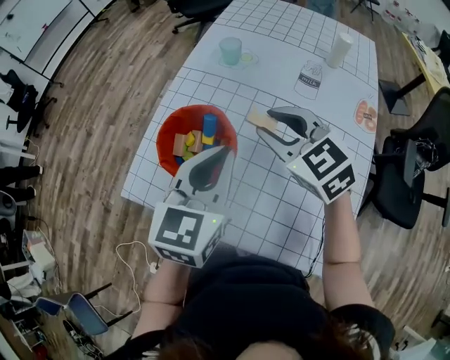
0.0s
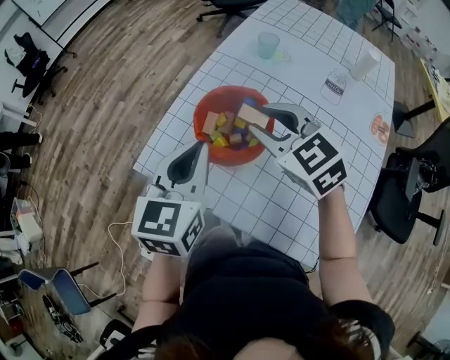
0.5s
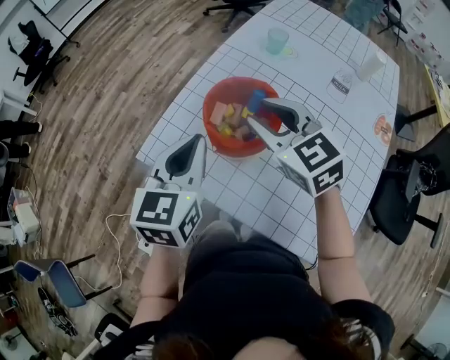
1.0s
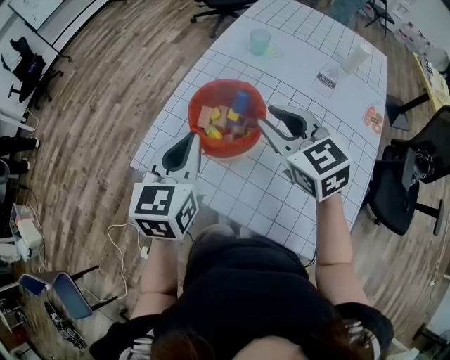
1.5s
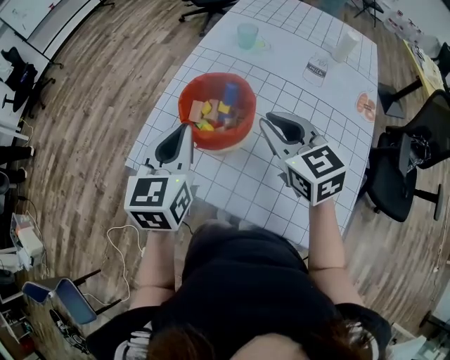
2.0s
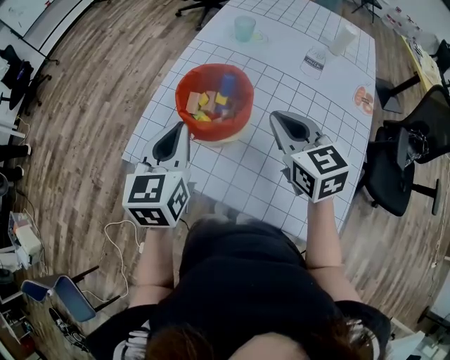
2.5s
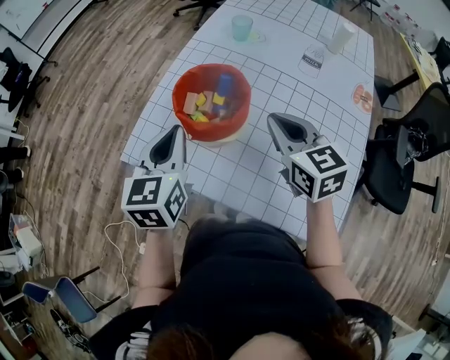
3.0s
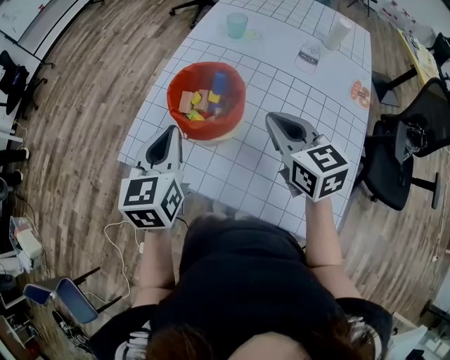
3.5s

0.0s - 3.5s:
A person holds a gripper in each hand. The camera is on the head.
0.0s - 2.0s: The left gripper moves to the left, some 15 cm, while the right gripper is displaced to the left and backward by some 10 cm, and closes.
2.0s - 3.5s: The grippers make only small movements.

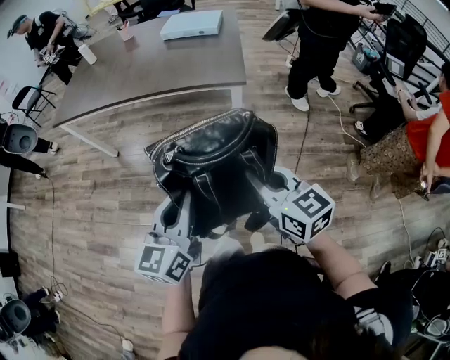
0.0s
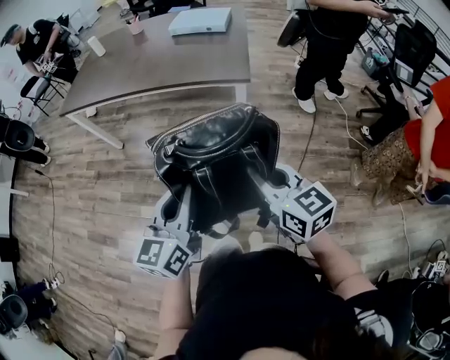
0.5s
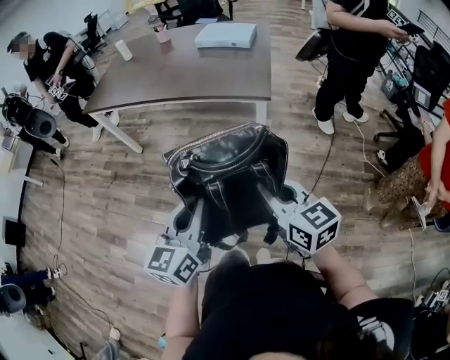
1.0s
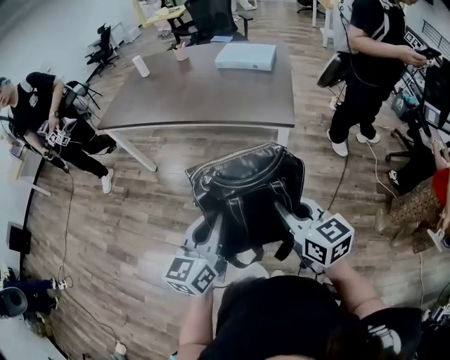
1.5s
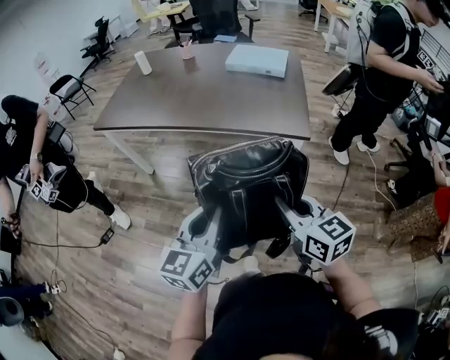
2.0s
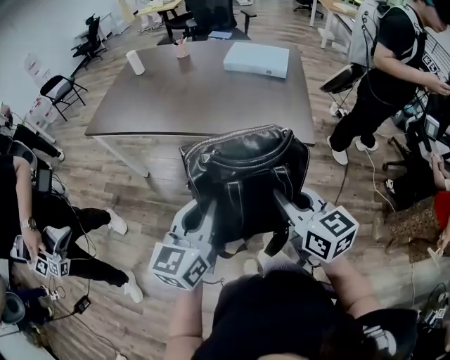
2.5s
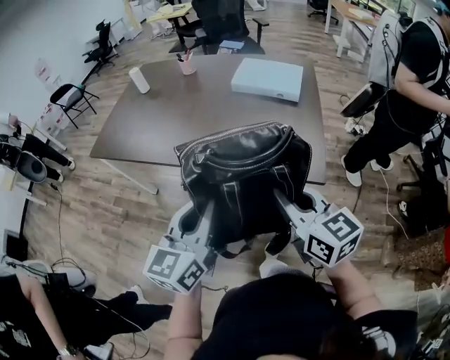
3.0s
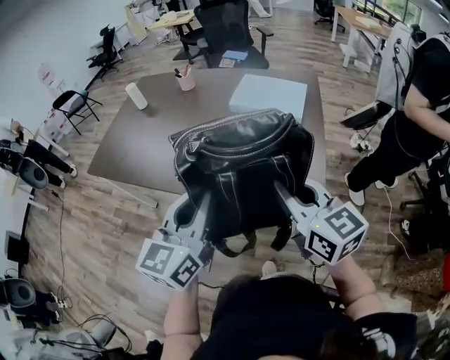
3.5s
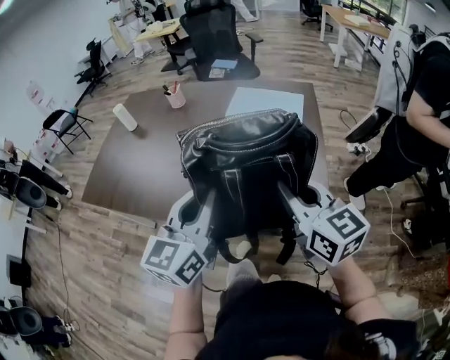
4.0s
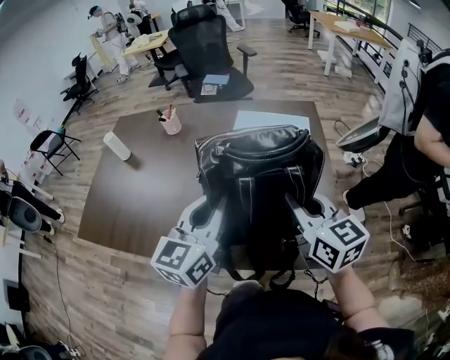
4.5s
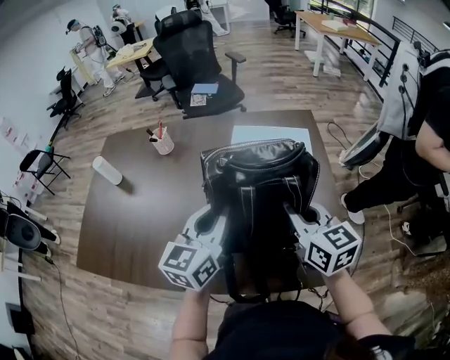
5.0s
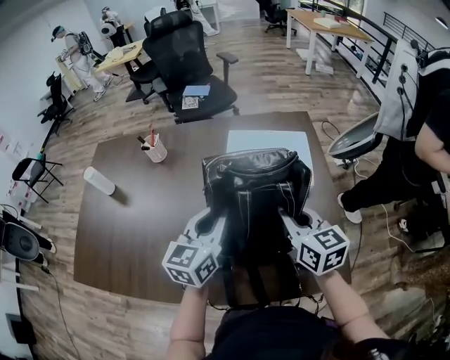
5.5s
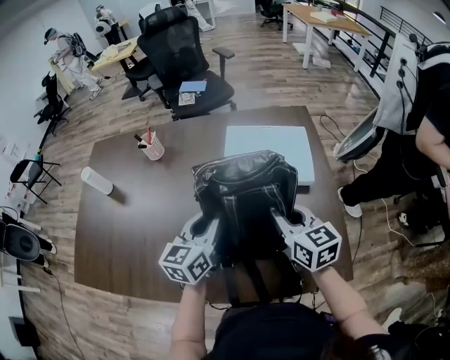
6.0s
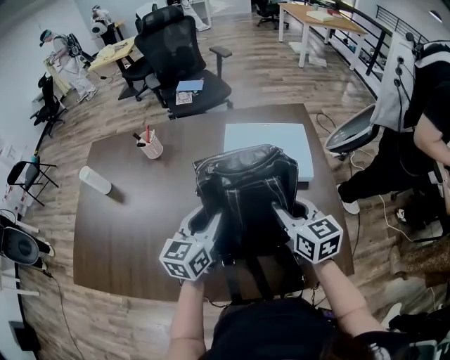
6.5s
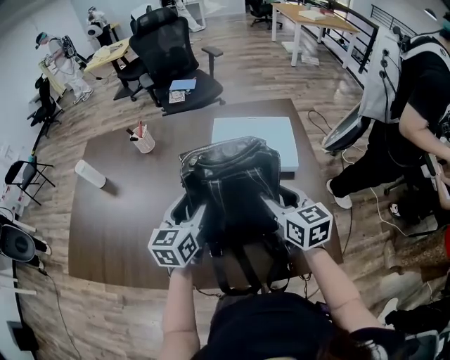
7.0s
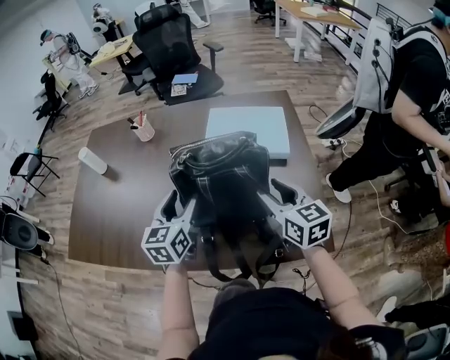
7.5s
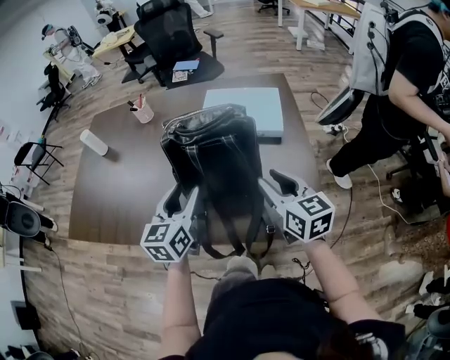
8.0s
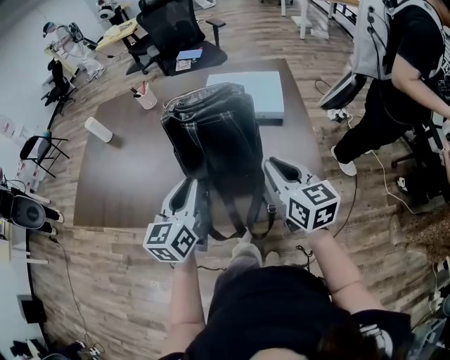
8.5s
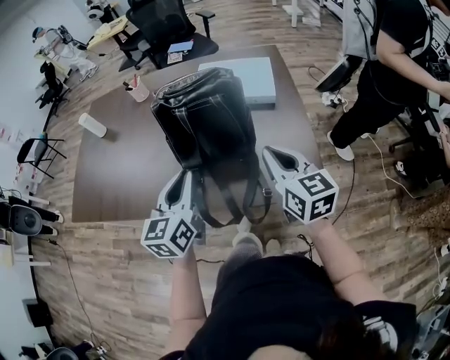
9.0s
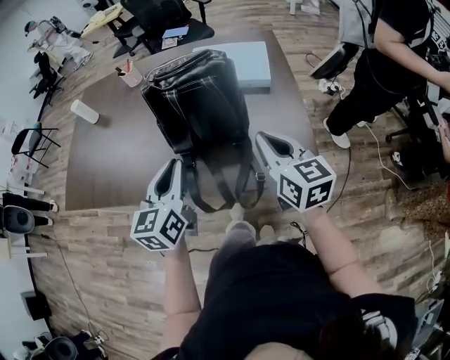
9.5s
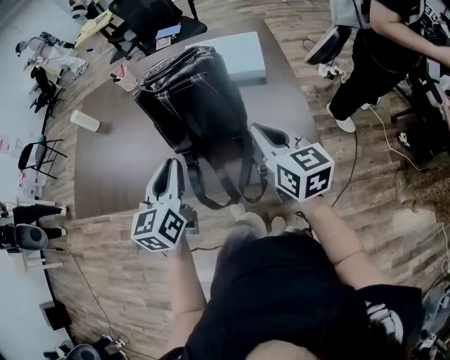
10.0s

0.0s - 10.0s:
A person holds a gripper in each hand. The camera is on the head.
0.0s - 2.0s: The two grippers go approximately 15 cm forward and to the left.
2.0s - 4.0s: The two grippers travel together, forward, some 40 cm.
4.0s - 6.0s: Both grippers move forward and downward, some 30 cm.
6.0s - 8.0s: The right gripper travels backward and to the right by approximately 15 cm, and opens its fingers; the left gripper shifts approximately 15 cm backward, and opens.
8.0s - 10.0s: The right gripper heads backward, covering about 5 cm, and closes up. Meanwhile the left gripper is displaced backward by about 10 cm, and closes its fingers.

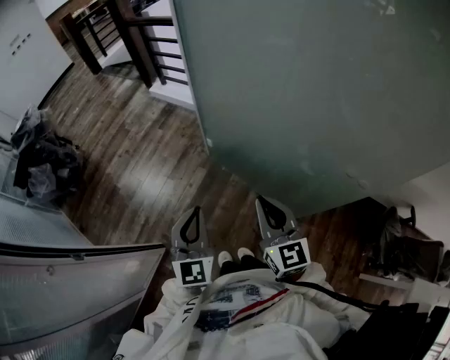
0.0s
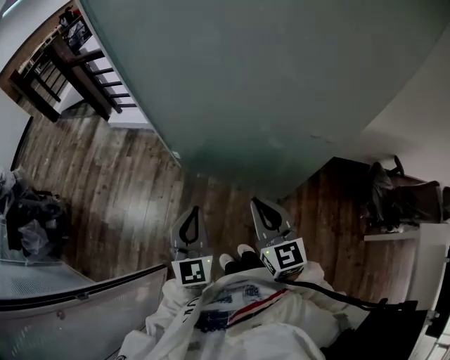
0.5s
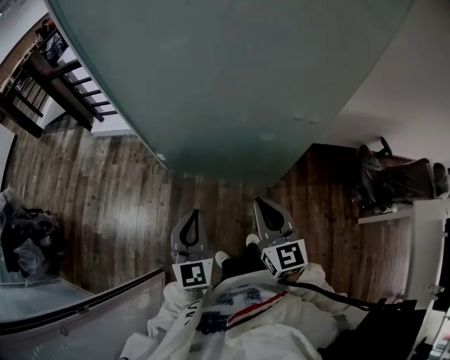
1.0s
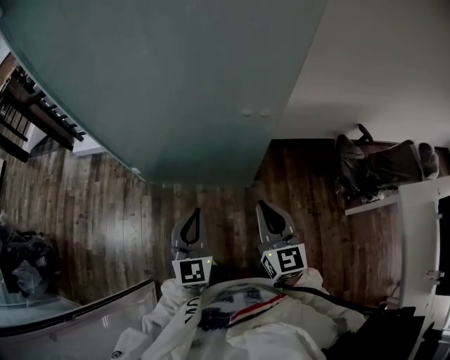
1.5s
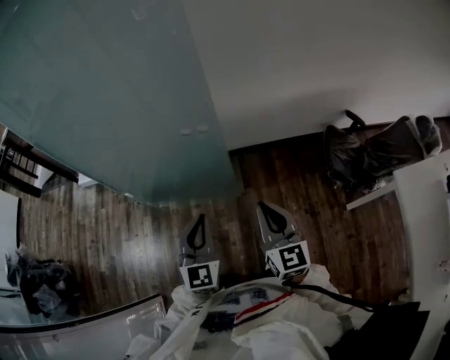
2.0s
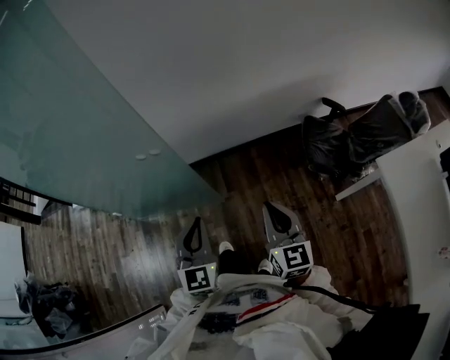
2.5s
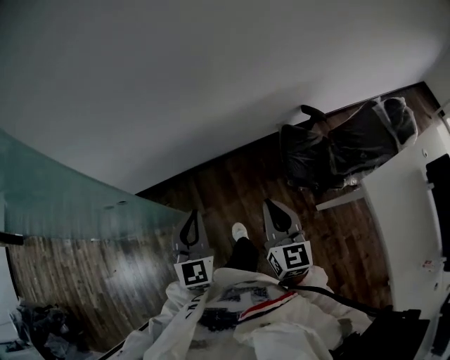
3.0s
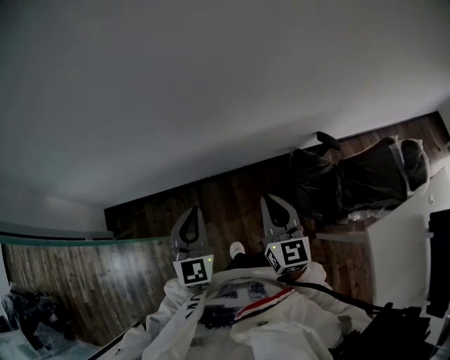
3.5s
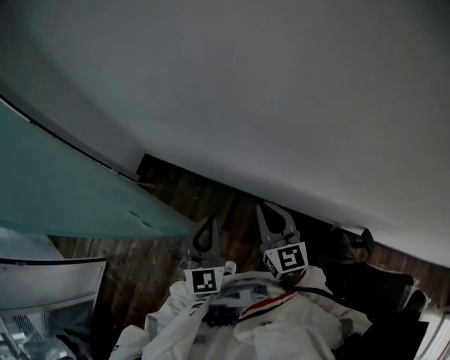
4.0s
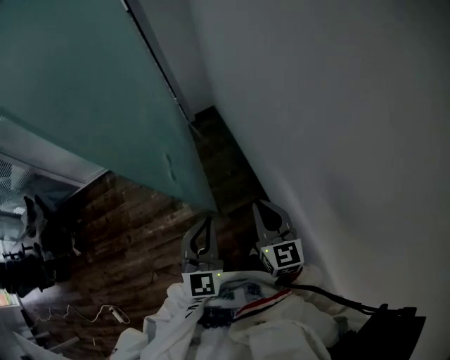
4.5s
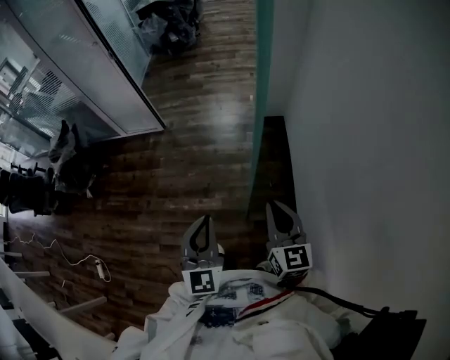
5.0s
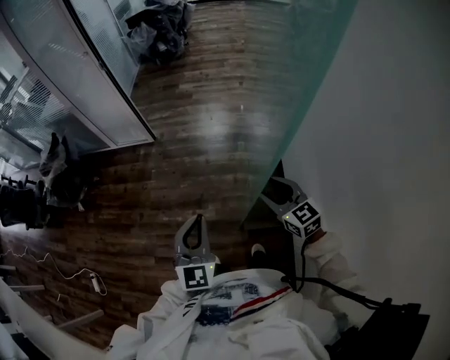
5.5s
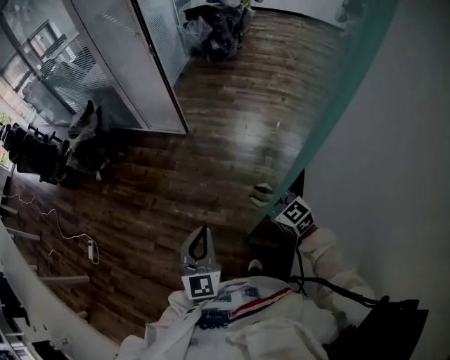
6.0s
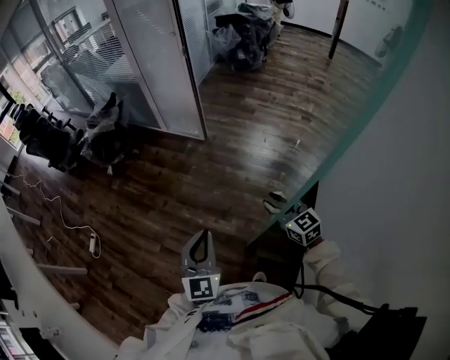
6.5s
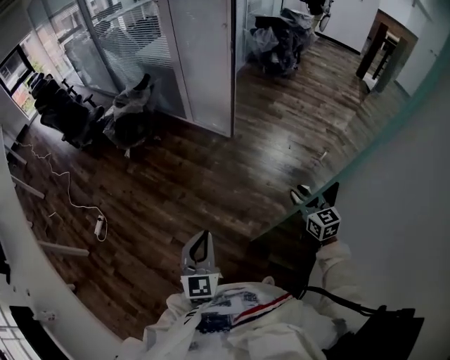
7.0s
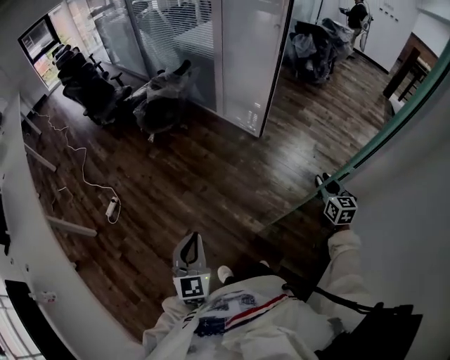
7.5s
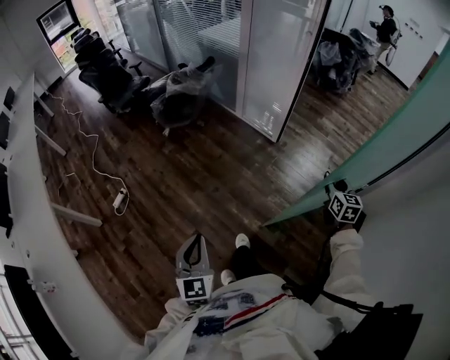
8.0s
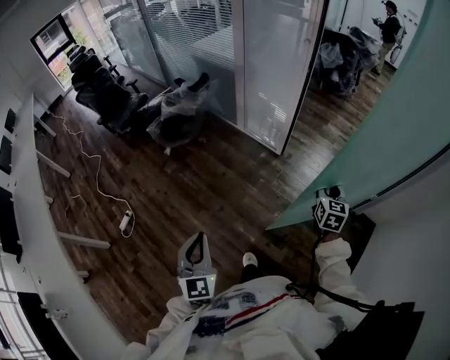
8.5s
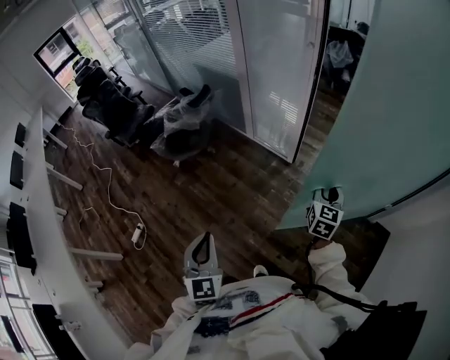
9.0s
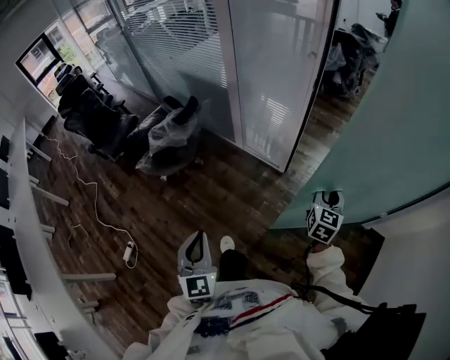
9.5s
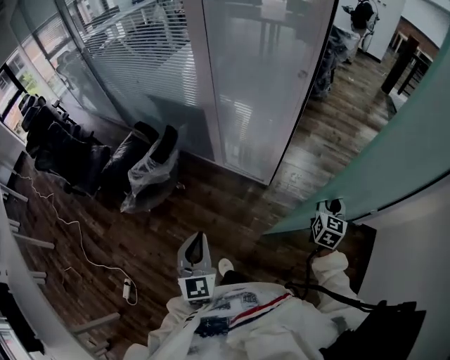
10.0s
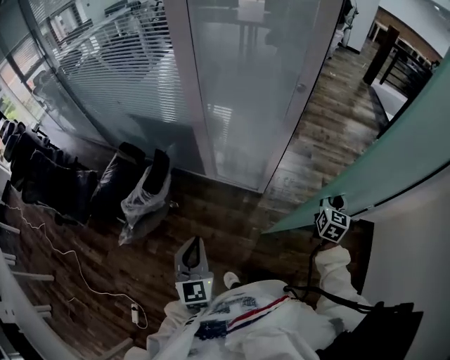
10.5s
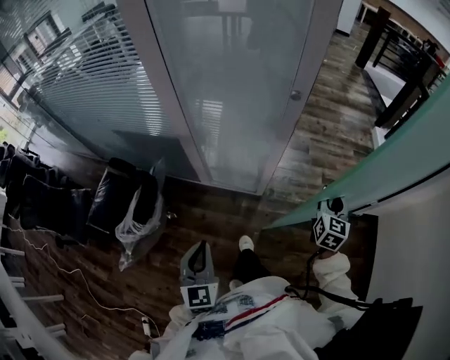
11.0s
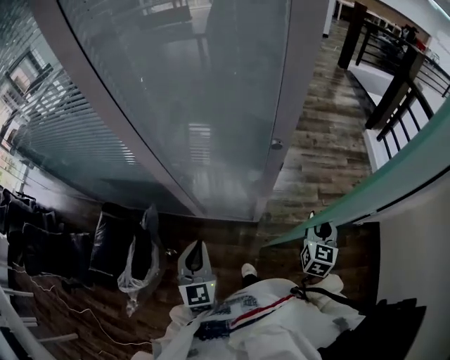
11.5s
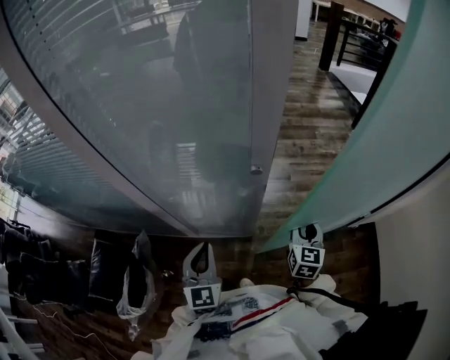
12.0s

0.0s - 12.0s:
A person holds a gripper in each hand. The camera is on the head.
0.0s - 2.0s: Both grippers are carried about 40 cm. The left gripper turns by approximately 30 degrees. The right gripper changes its angle by roughly 30 degrees.
2.0s - 4.0s: Both grippers are carried about 40 cm. The left gripper rotates some 30 degrees, while the right gripper swivels about 30 degrees.
4.0s - 6.0s: The right gripper changes place by some 40 cm, swivels approximately 110 degrees, and opens; the left gripper moves some 25 cm, and swivels roughly 80 degrees.
6.0s - 8.0s: The left gripper travels to the left by some 40 cm, and turns by roughly 30 degrees, while the right gripper goes roughly 30 cm forward and to the left, and turns by approximately 20 degrees.
8.0s - 10.0s: The right gripper moves forward, some 30 cm, and changes its angle by roughly 30 degrees. The left gripper travels forward by about 50 cm.
10.0s - 12.0s: The left gripper travels forward by approximately 40 cm, and rotates about 30 degrees. Meanwhile the right gripper moves forward, some 20 cm.

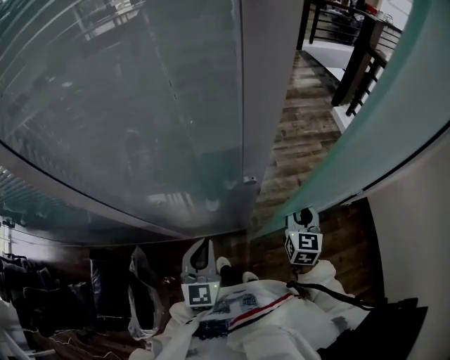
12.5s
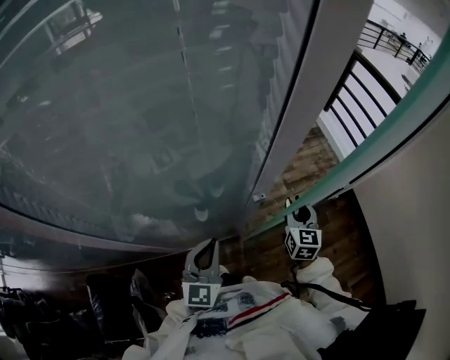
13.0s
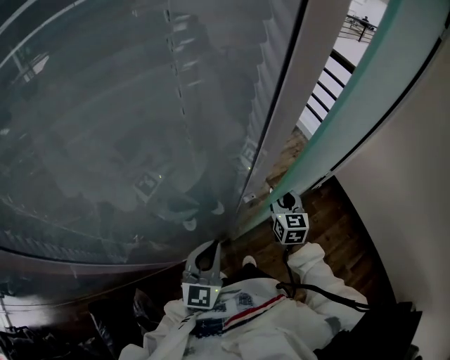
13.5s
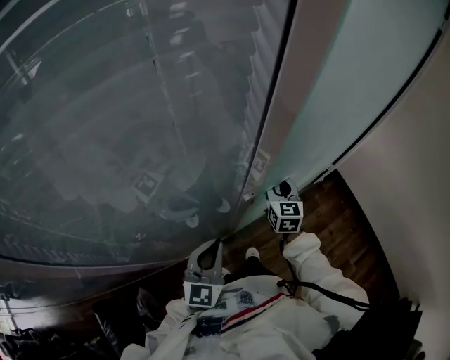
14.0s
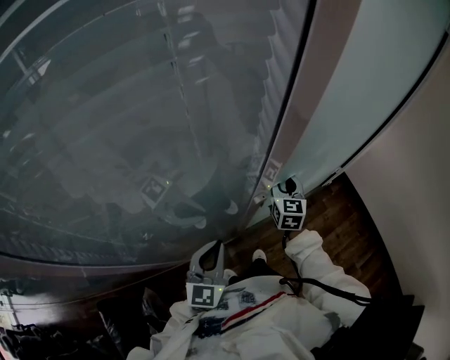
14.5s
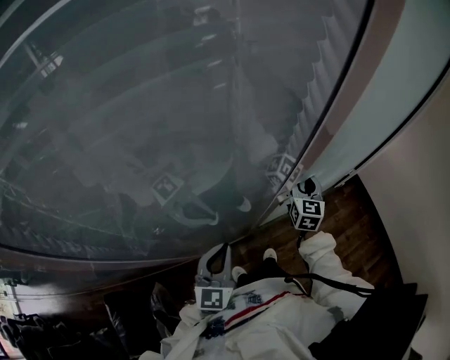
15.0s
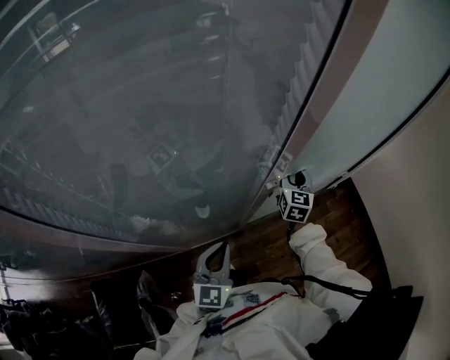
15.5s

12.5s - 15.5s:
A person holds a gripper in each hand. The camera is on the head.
12.5s - 14.0s: Both grippers move forward, roughly 5 cm. The left gripper rotates about 30 degrees.
14.0s - 15.5s: The left gripper ends up about 5 cm from where it was.
